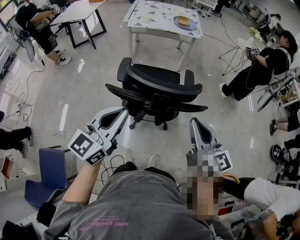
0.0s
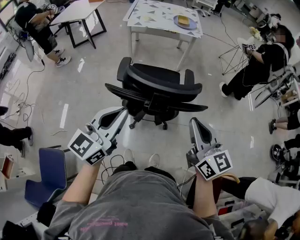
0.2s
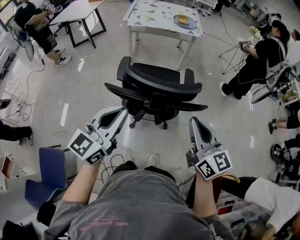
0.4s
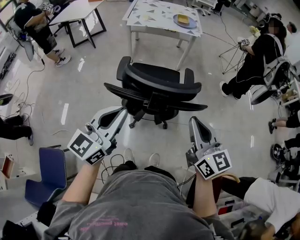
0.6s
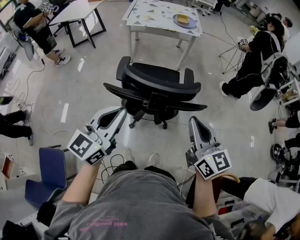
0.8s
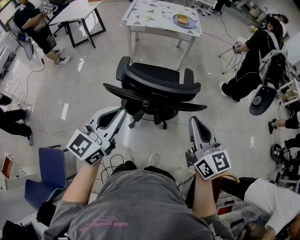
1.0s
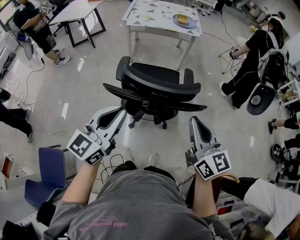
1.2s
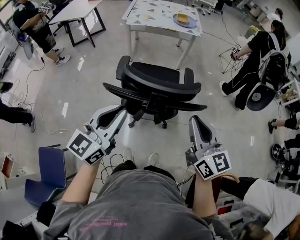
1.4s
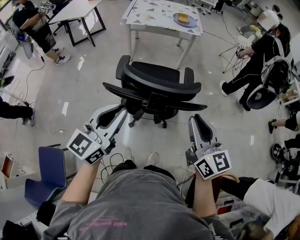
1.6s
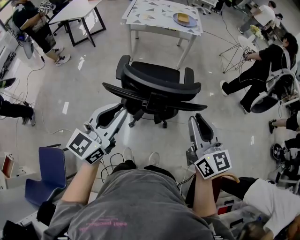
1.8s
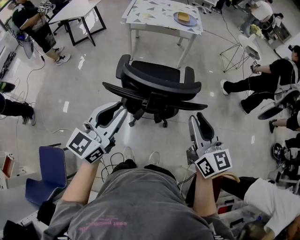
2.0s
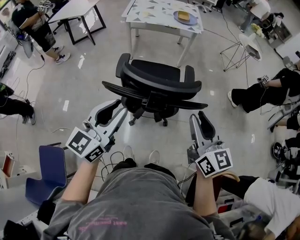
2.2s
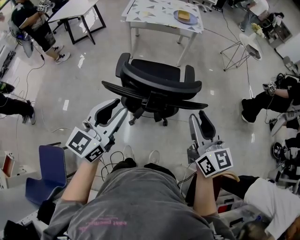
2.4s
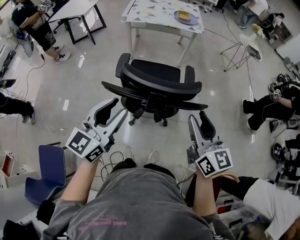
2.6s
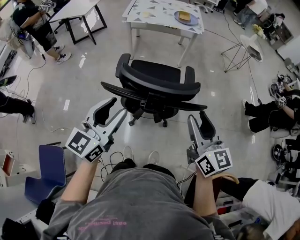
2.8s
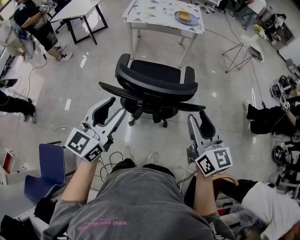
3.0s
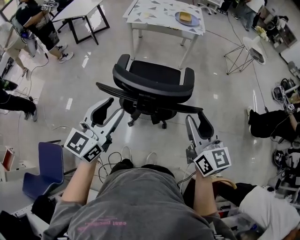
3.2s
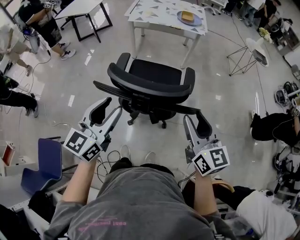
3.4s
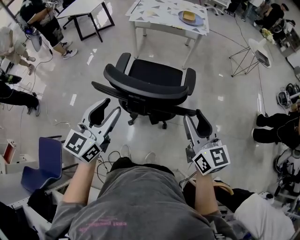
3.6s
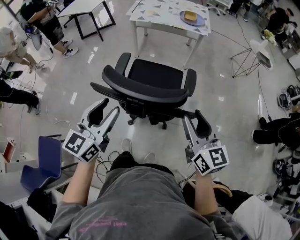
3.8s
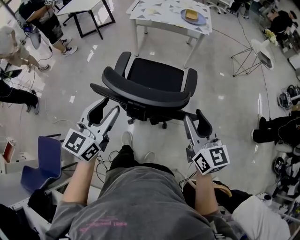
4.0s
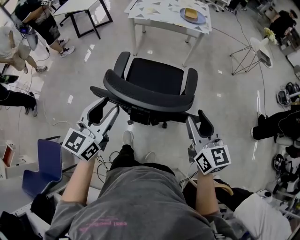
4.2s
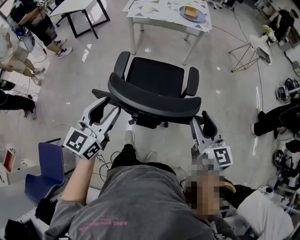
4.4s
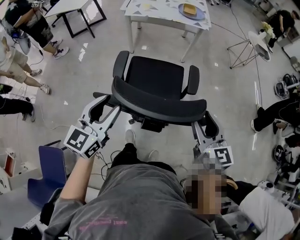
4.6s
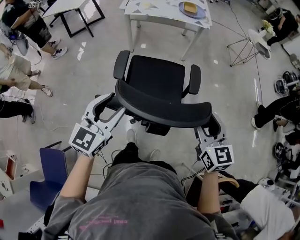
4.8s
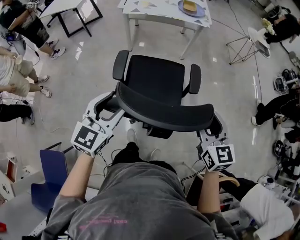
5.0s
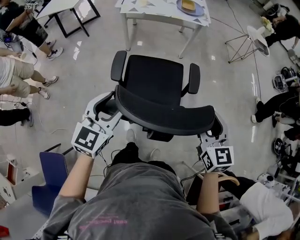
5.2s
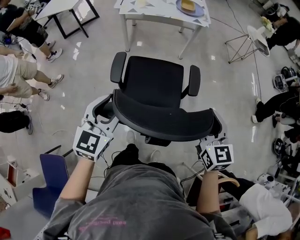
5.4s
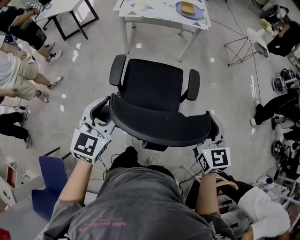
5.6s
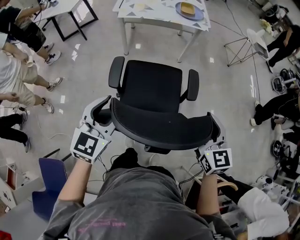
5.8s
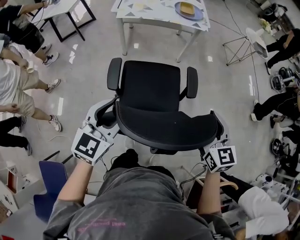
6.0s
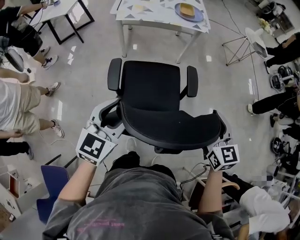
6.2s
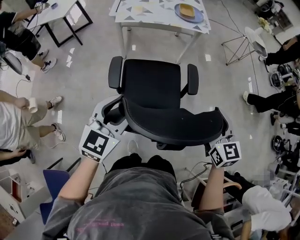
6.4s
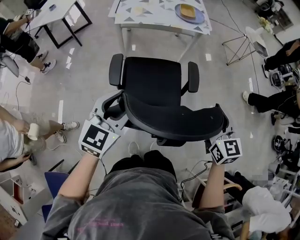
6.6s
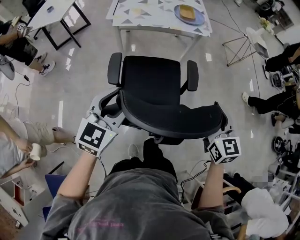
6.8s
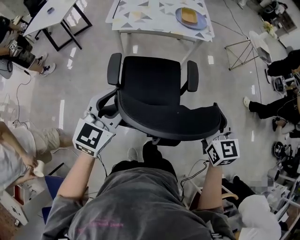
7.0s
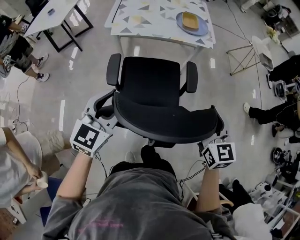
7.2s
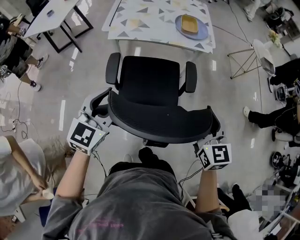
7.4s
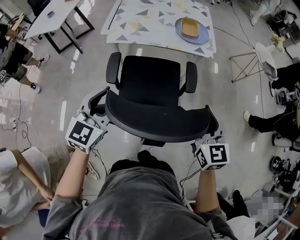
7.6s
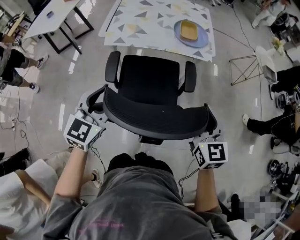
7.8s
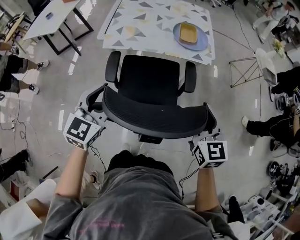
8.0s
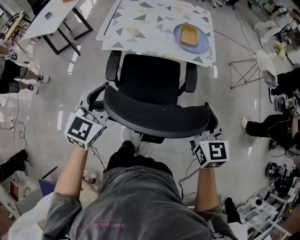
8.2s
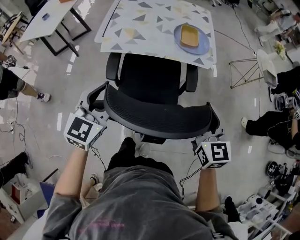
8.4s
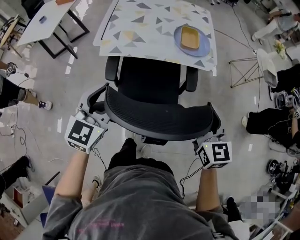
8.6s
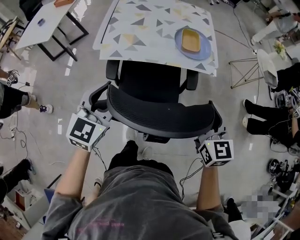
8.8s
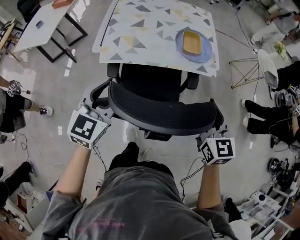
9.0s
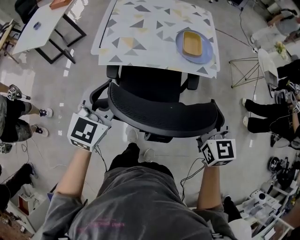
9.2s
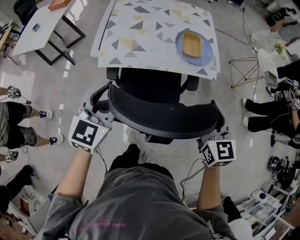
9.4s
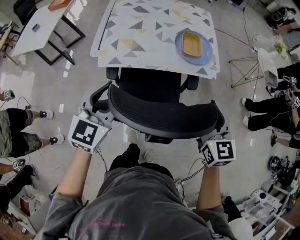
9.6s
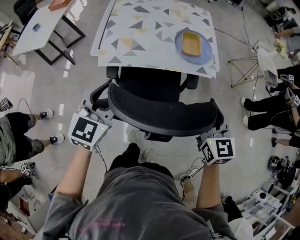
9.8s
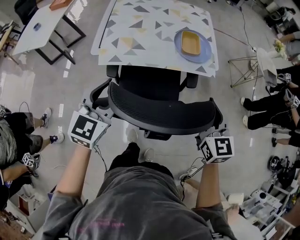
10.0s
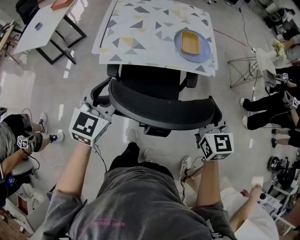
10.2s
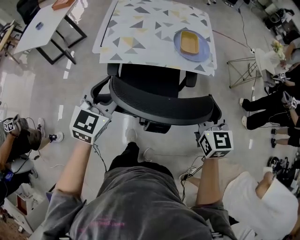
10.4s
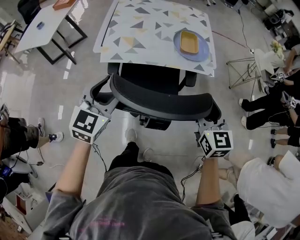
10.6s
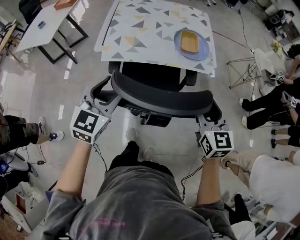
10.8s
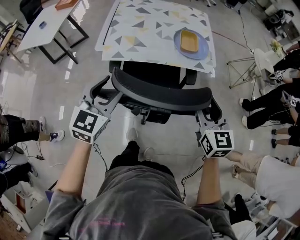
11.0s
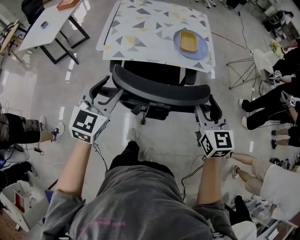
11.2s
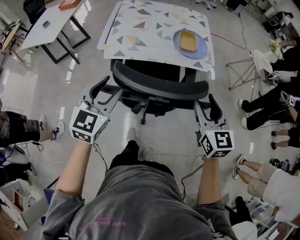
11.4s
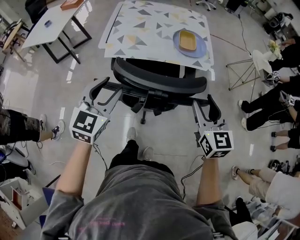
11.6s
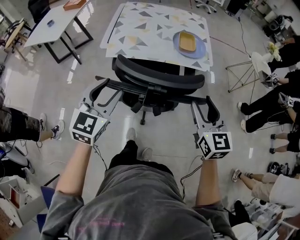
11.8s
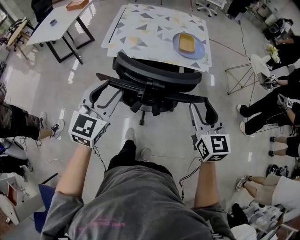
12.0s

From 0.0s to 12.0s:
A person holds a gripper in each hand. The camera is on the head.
From 0.0s to 1.6s: The grippers stay close to where they were, moving slightly.
From 1.6s to 3.0s: The left gripper opens up. Meanwhile the right gripper opens.
From 3.0s to 4.4s: The right gripper moves forward and downward, some 10 cm. Meanwhile the left gripper travels forward by some 5 cm.
From 4.4s to 6.0s: The grippers both shift forward by about 10 cm. The left gripper turns by approximately 20 degrees.
From 6.0s to 7.6s: The two grippers go approximately 30 cm forward.
From 7.6s to 9.0s: Both grippers travel together forward, about 20 cm.
From 9.0s to 10.4s: The grippers make only small movements.
From 10.4s to 12.0s: Both grippers travel together backward, approximately 10 cm.

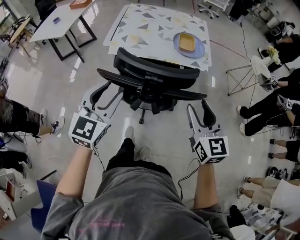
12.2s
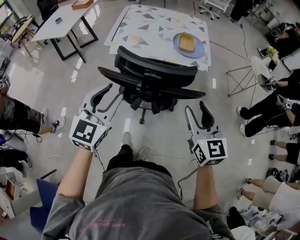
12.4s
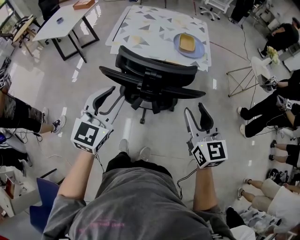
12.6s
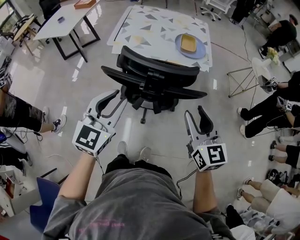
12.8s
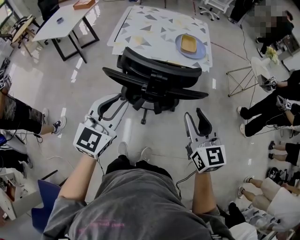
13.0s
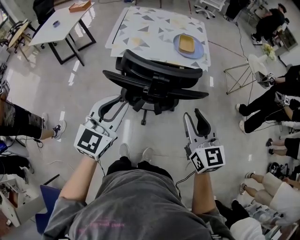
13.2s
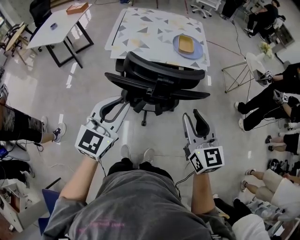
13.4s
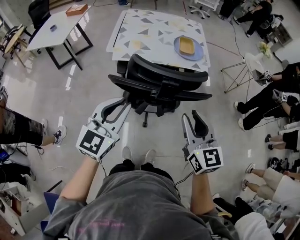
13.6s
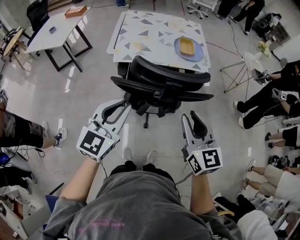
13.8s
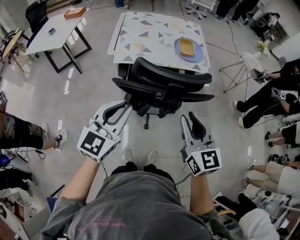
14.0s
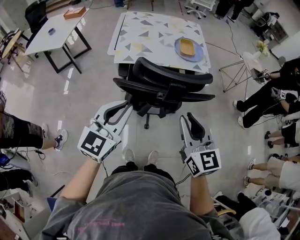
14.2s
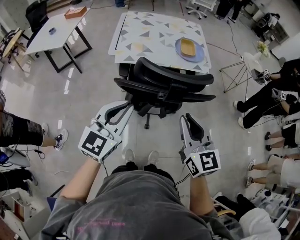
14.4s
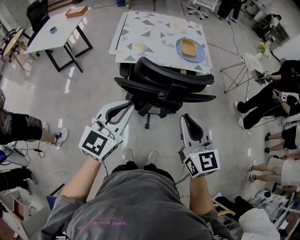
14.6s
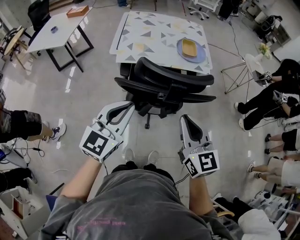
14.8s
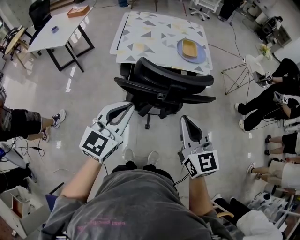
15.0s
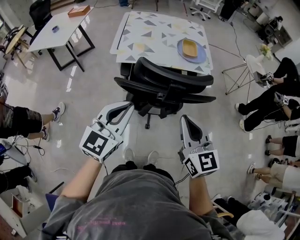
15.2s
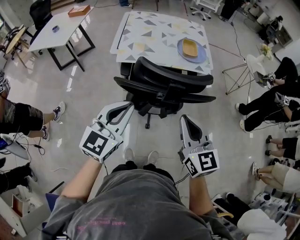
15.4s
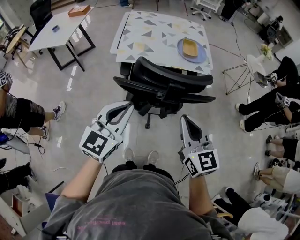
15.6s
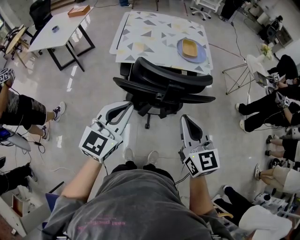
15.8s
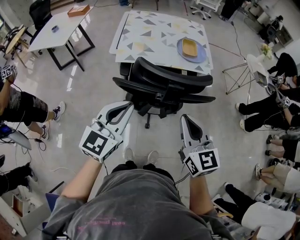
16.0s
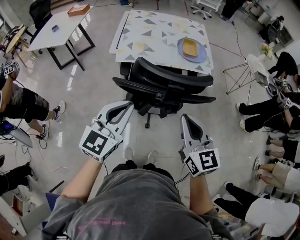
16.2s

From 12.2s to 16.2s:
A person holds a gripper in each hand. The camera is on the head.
From 12.2s to 13.6s: The right gripper shifts approximately 10 cm to the left and backward. The left gripper shifts by roughly 5 cm, and closes up.
From 13.6s to 14.8s: The right gripper moves to the left, about 5 cm, and closes its fingers.
From 14.8s to 16.2s: There are only small adjustments of the grippers.

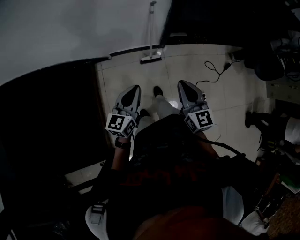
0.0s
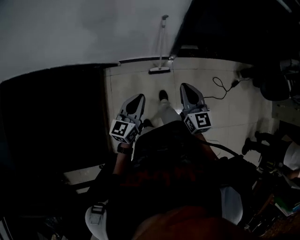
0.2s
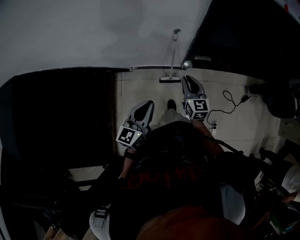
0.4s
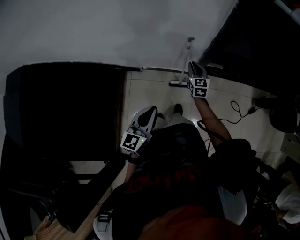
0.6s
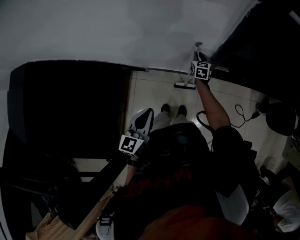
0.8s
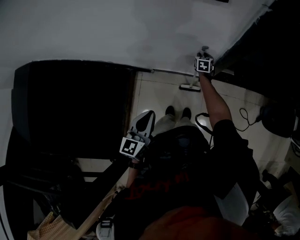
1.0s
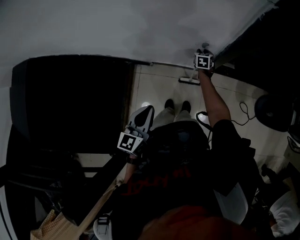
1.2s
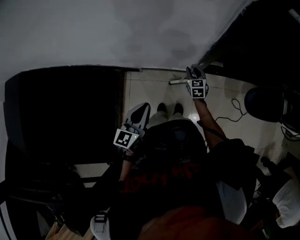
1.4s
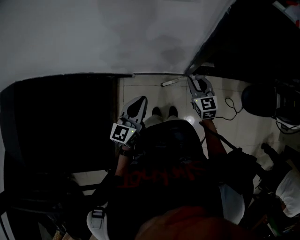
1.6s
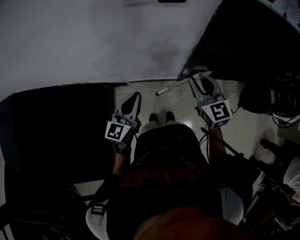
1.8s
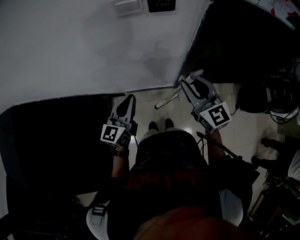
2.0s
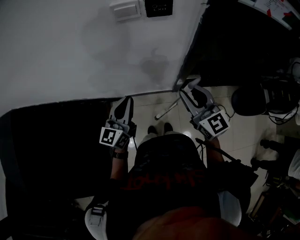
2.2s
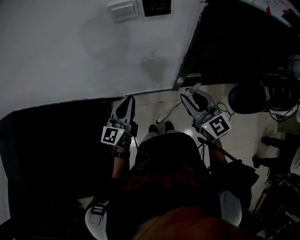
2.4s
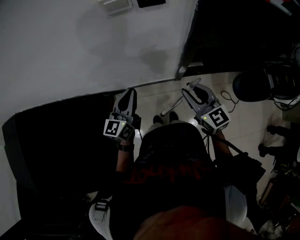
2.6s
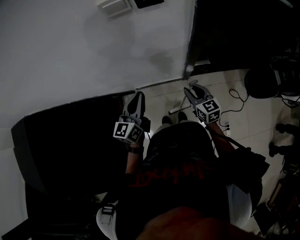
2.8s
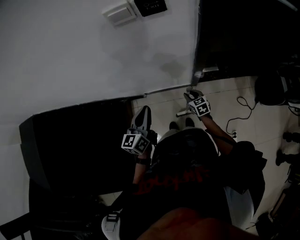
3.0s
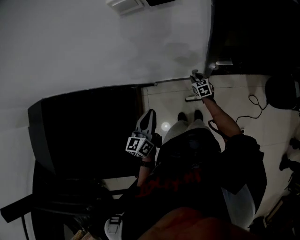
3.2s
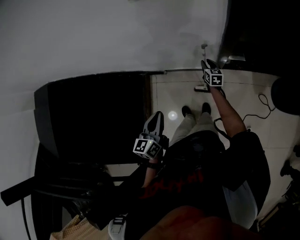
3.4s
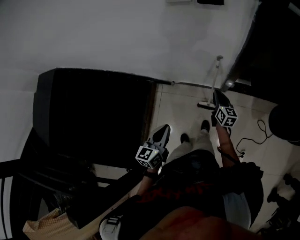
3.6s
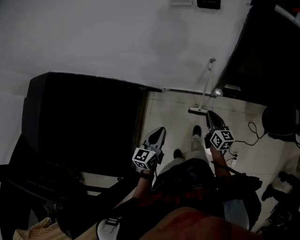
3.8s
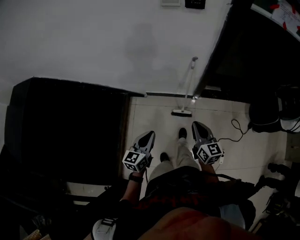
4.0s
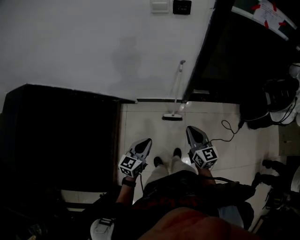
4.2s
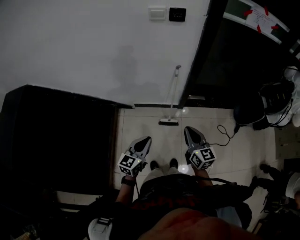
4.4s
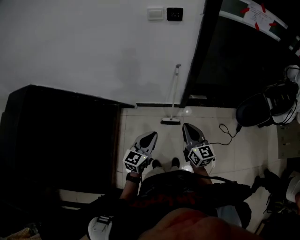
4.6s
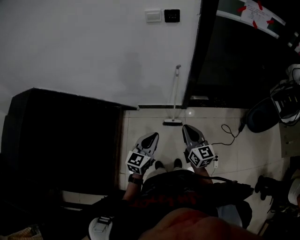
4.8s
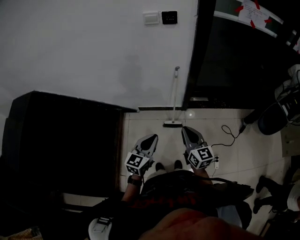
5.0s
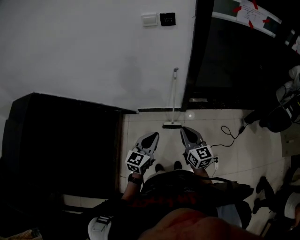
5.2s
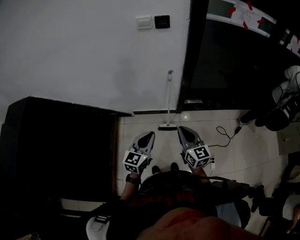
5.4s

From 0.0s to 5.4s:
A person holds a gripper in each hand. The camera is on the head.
From 0.0s to 1.4s: The right gripper heads forward and downward, covering roughly 50 cm, changes its angle by about 20 degrees, and opens up; the left gripper shifts approximately 20 cm forward.
From 1.4s to 2.8s: The left gripper travels forward and upward by roughly 10 cm. The right gripper heads upward and backward, covering roughly 20 cm.
From 2.8s to 4.0s: The two grippers go roughly 25 cm backward. The right gripper closes its fingers.
From 4.0s to 5.4s: The right gripper travels upward and backward by about 15 cm. Meanwhile the left gripper moves upward and to the right, about 15 cm.

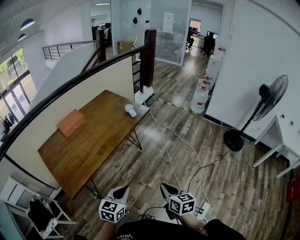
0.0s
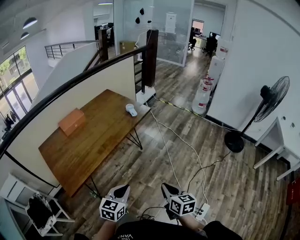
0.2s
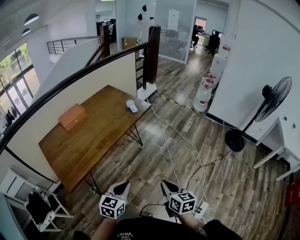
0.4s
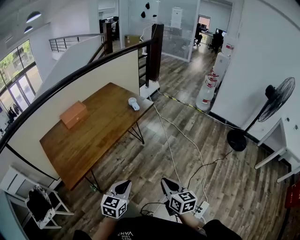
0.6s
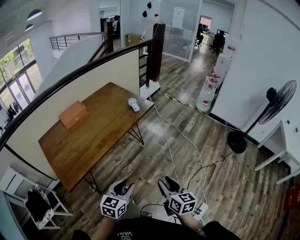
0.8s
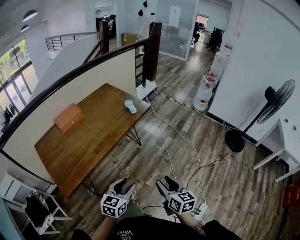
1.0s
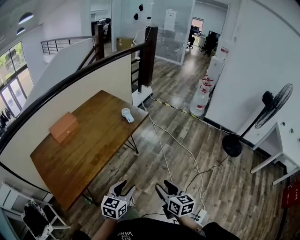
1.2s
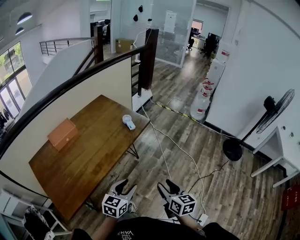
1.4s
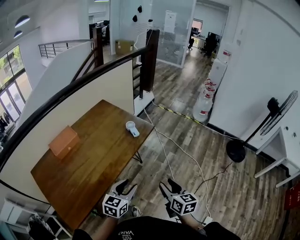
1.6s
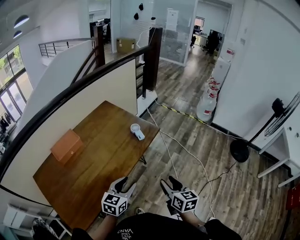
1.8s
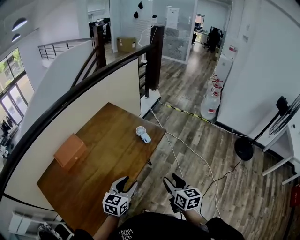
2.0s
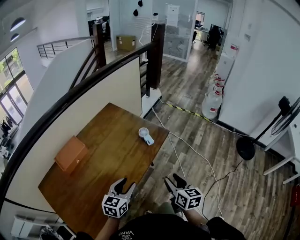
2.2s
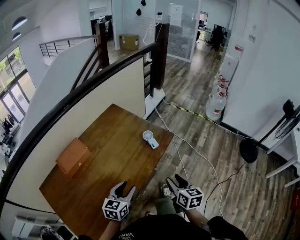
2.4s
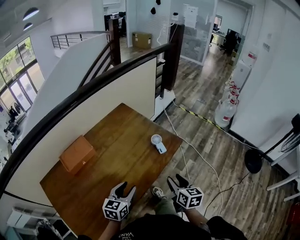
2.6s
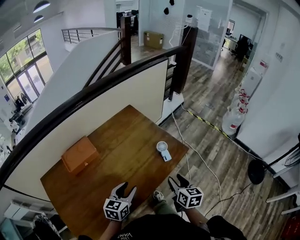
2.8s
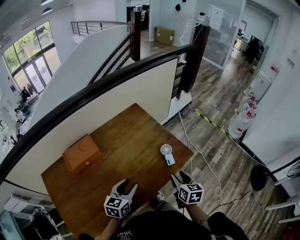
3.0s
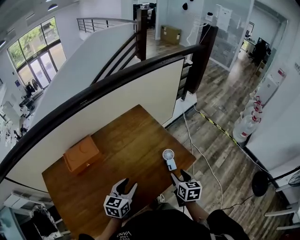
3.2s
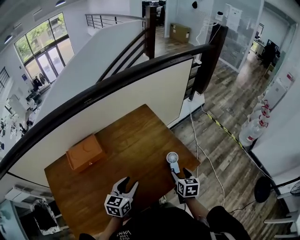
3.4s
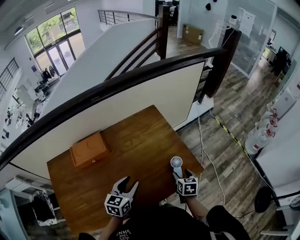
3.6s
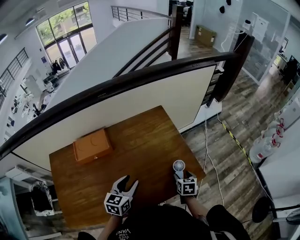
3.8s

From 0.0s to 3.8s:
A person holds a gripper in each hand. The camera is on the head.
From 0.0s to 1.2s: The two grippers go about 10 cm forward. The left gripper opens its fingers. The right gripper opens.
From 1.2s to 2.6s: Both grippers move forward and to the left, about 35 cm.
From 2.6s to 3.8s: The right gripper is displaced forward and downward by approximately 25 cm, and turns by about 30 degrees, while the left gripper shifts some 15 cm forward, and changes its angle by approximately 30 degrees.
